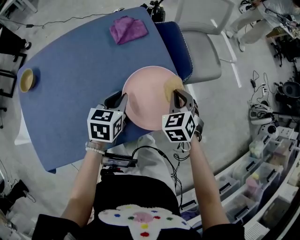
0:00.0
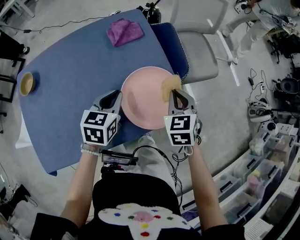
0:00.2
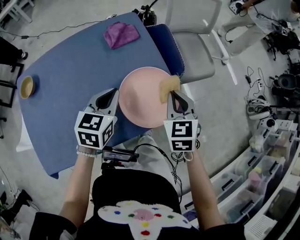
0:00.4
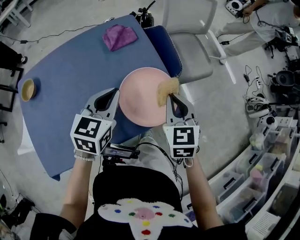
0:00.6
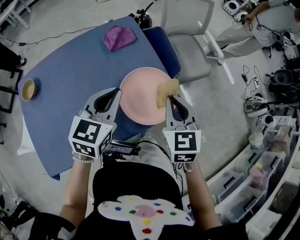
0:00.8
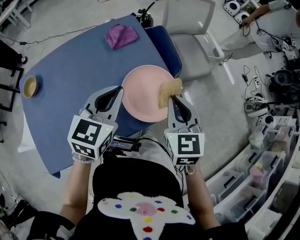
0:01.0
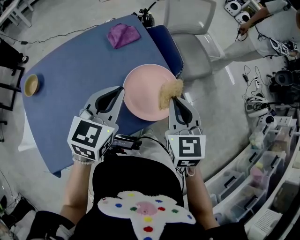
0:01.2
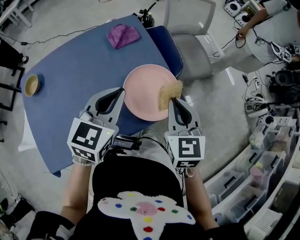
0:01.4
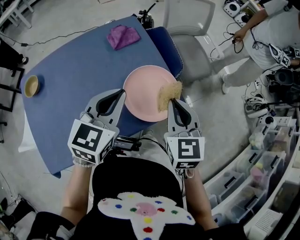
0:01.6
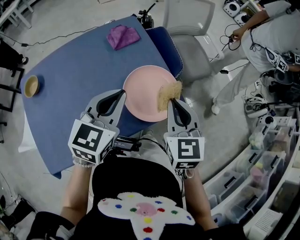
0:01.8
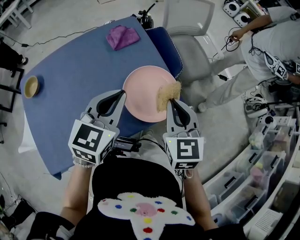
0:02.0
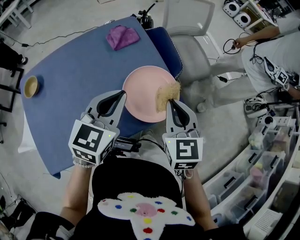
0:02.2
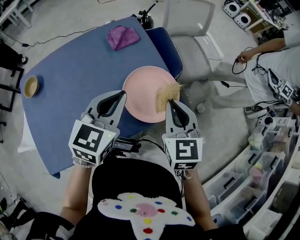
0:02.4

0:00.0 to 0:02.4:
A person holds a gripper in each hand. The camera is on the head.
0:00.0 to 0:01.2: The right gripper is displaced upward and backward by approximately 15 cm, and changes its angle by approximately 30 degrees, while the left gripper heads upward, covering about 15 cm, and rotates roughly 30 degrees.
0:01.2 to 0:02.4: Both grippers stay put.

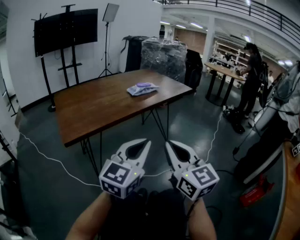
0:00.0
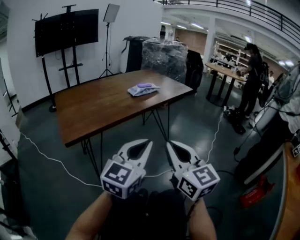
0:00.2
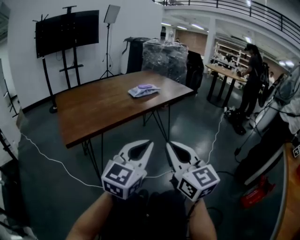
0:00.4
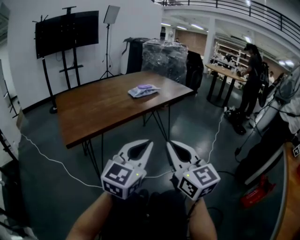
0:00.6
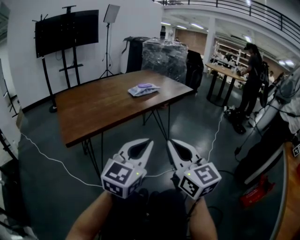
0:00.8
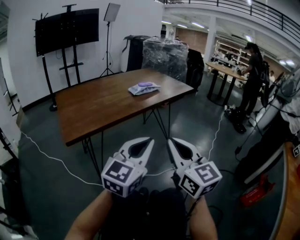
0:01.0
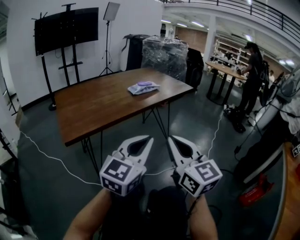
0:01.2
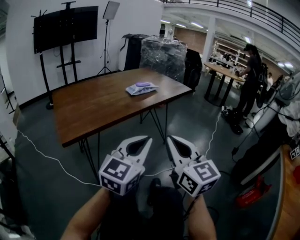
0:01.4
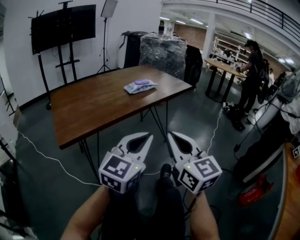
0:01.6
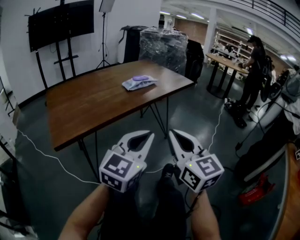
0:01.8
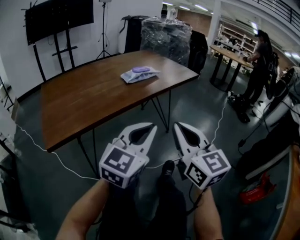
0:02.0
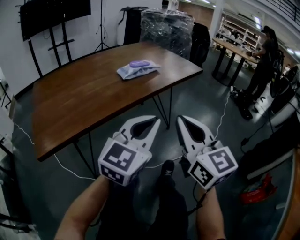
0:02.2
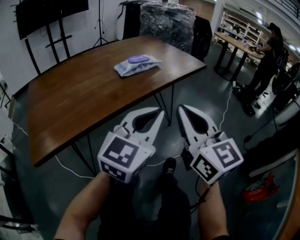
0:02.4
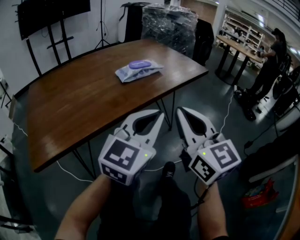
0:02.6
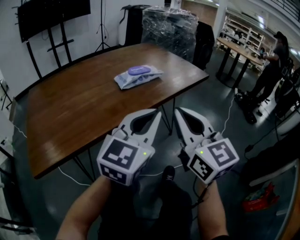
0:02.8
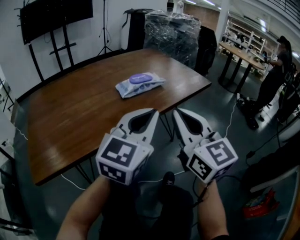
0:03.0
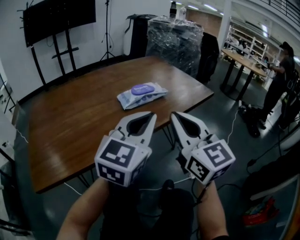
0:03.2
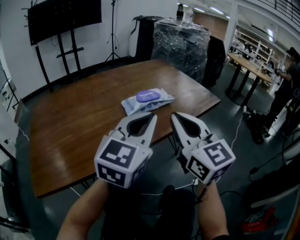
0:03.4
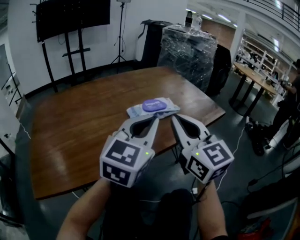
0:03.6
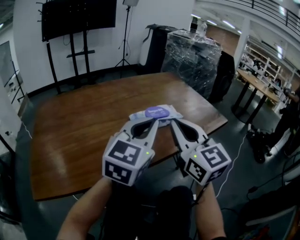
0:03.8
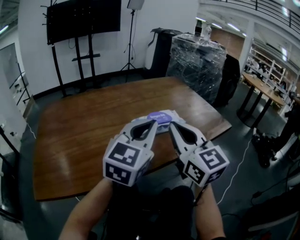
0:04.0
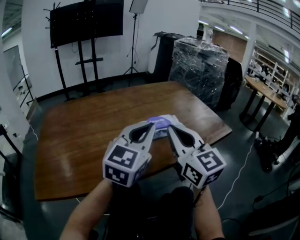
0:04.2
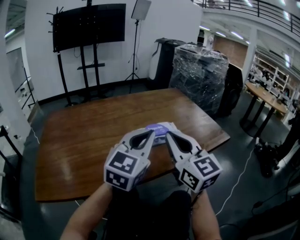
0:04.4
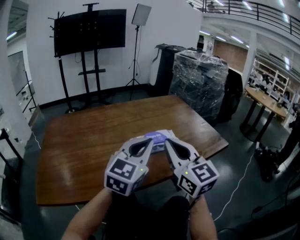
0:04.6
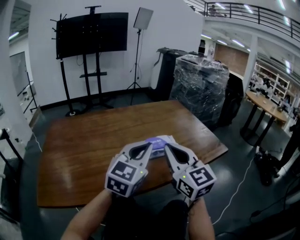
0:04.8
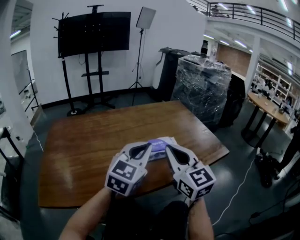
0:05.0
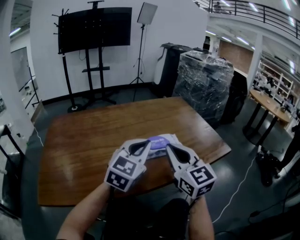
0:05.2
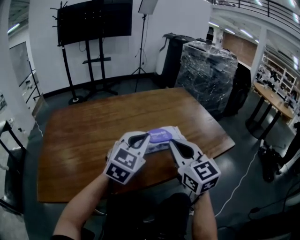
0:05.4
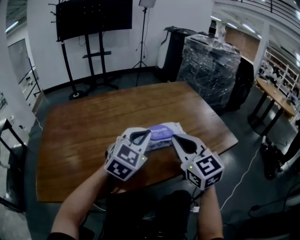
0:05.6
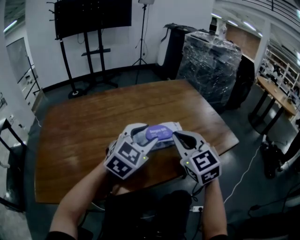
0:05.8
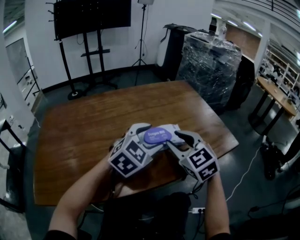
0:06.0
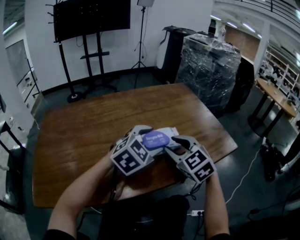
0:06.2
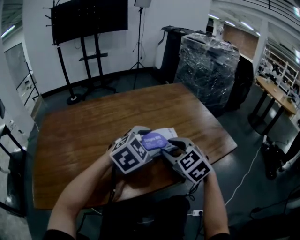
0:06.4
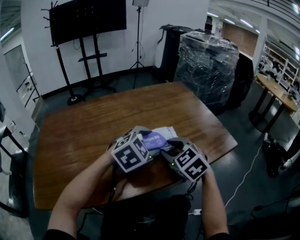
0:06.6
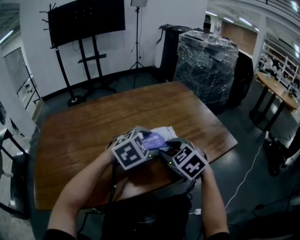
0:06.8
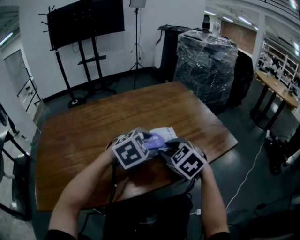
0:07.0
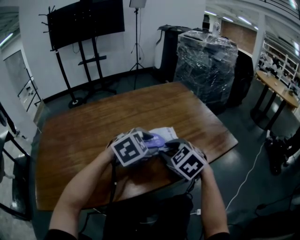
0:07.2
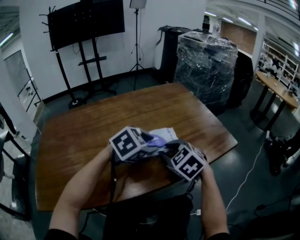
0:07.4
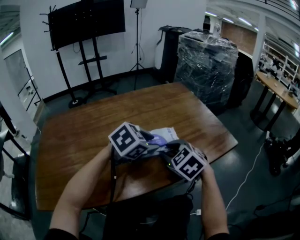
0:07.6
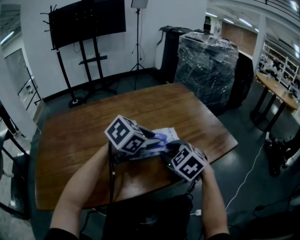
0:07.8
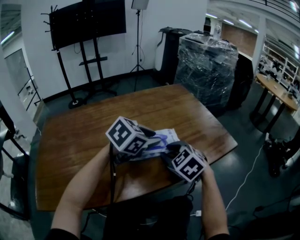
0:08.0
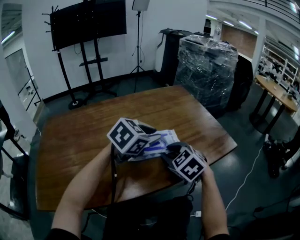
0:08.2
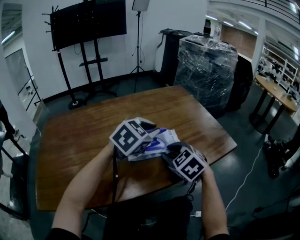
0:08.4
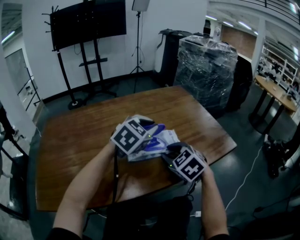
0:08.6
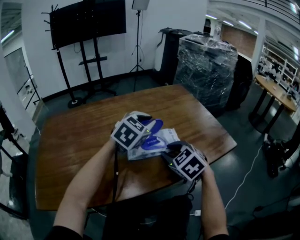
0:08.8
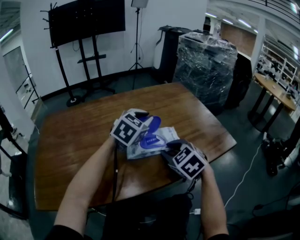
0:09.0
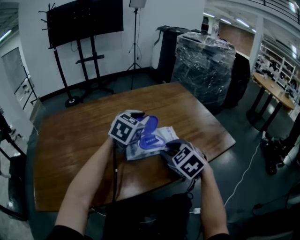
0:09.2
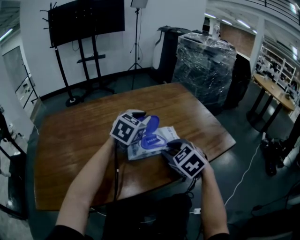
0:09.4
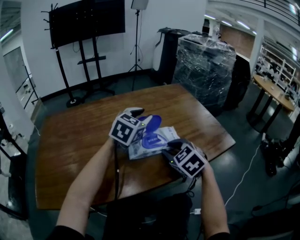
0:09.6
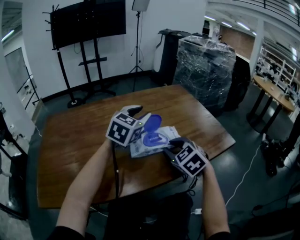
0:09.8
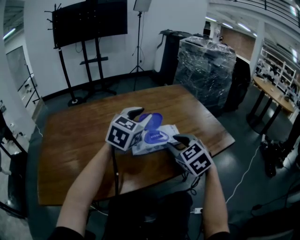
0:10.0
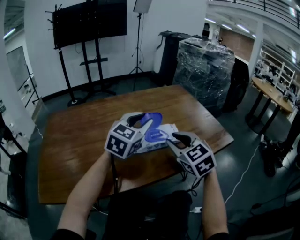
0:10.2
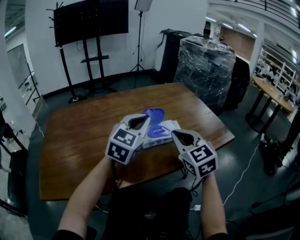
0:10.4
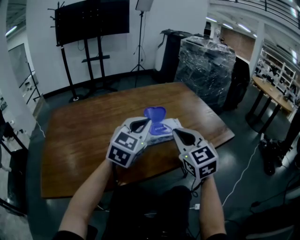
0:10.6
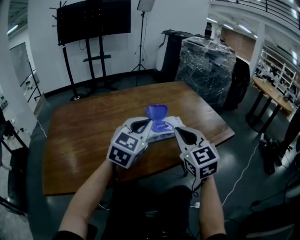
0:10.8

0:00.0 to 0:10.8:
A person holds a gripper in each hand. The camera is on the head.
0:00.0 to 0:01.6: The grippers make only small movements.
0:01.6 to 0:03.0: The two grippers go some 25 cm forward.
0:03.0 to 0:04.6: The two grippers go approximately 15 cm forward.
0:04.6 to 0:06.2: Both grippers move forward and downward, about 15 cm. The right gripper tips its fingers downward by approximately 30 degrees, and opens its fingers. Meanwhile the left gripper changes its angle by about 30 degrees, and opens its fingers.
0:06.2 to 0:07.8: The left gripper swivels some 30 degrees, and closes up.
0:07.8 to 0:09.2: The left gripper shifts approximately 10 cm forward and to the left, and turns by about 30 degrees.
0:09.2 to 0:10.8: The left gripper shifts some 15 cm backward. Meanwhile the right gripper heads upward and backward, covering about 15 cm, tilts its fingers some 30 degrees upward, and closes up.

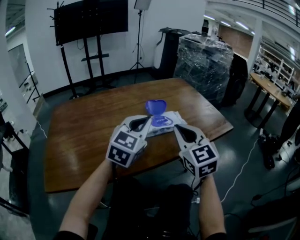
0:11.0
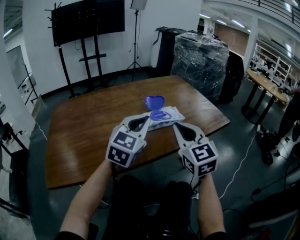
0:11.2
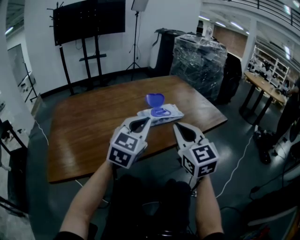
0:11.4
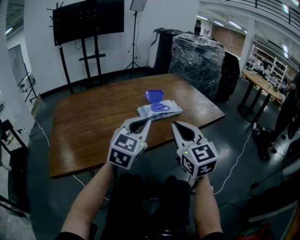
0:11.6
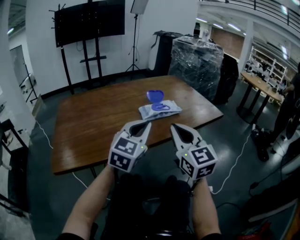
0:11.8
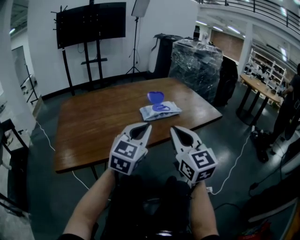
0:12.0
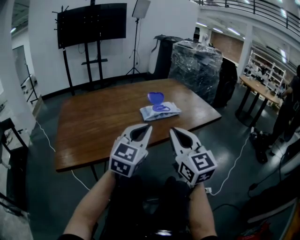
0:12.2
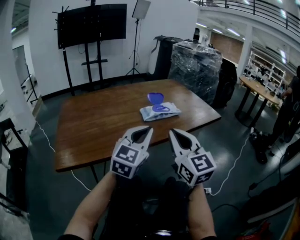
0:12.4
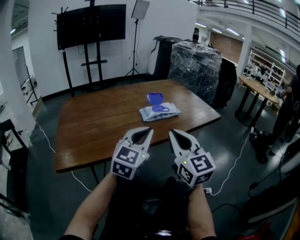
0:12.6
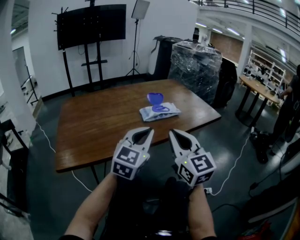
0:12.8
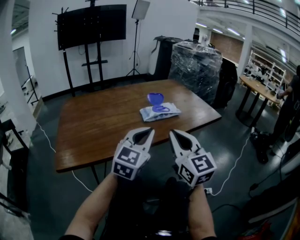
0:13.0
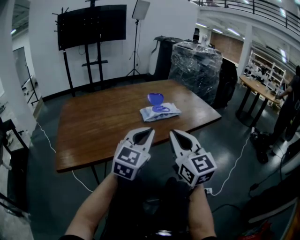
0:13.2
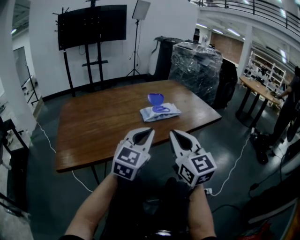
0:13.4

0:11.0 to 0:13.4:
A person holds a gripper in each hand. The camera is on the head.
0:11.0 to 0:12.2: The grippers both shift backward by approximately 15 cm.
0:12.2 to 0:13.4: The grippers stay close to where they were, moving slightly.

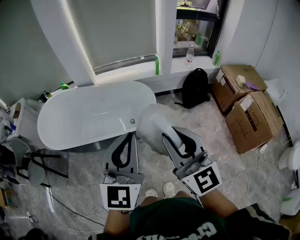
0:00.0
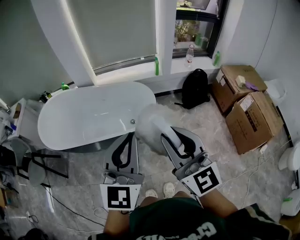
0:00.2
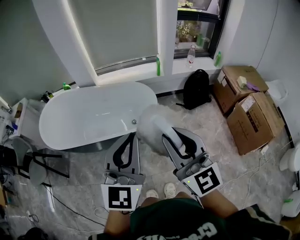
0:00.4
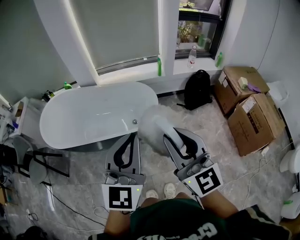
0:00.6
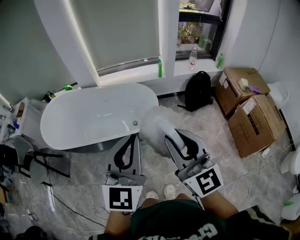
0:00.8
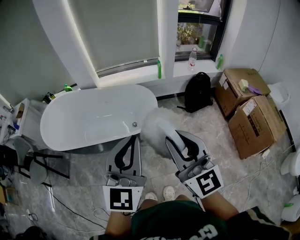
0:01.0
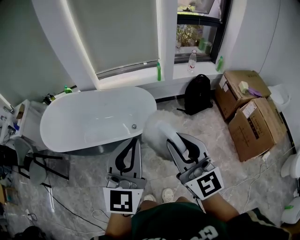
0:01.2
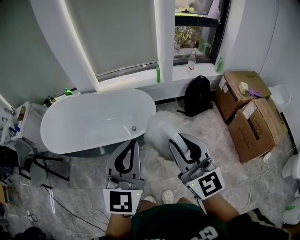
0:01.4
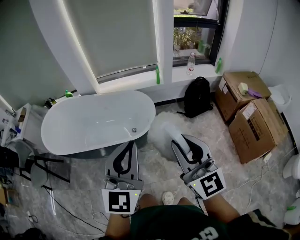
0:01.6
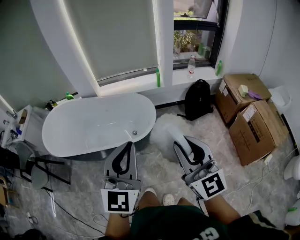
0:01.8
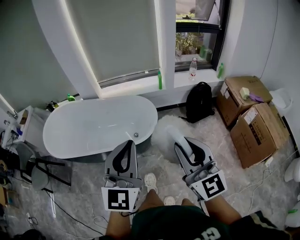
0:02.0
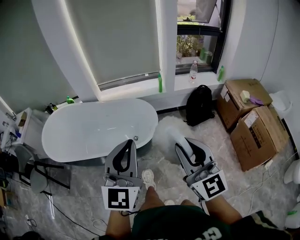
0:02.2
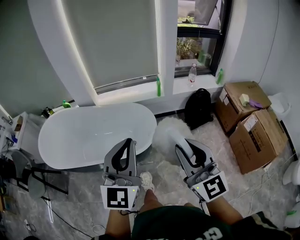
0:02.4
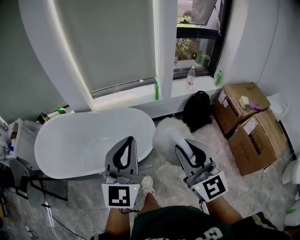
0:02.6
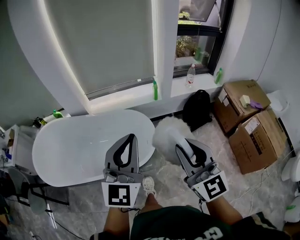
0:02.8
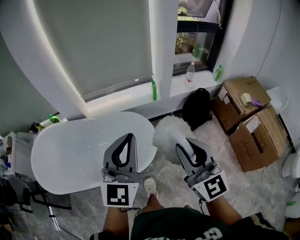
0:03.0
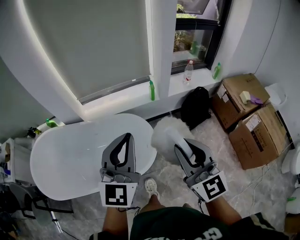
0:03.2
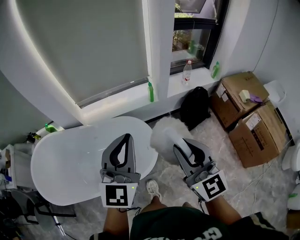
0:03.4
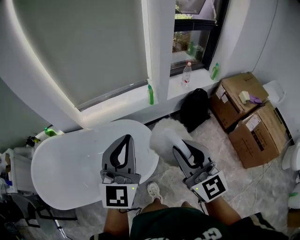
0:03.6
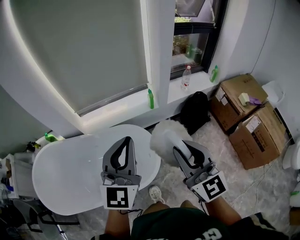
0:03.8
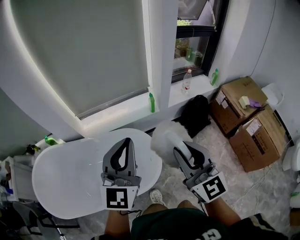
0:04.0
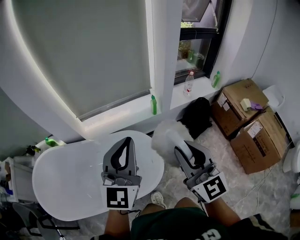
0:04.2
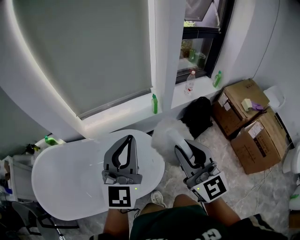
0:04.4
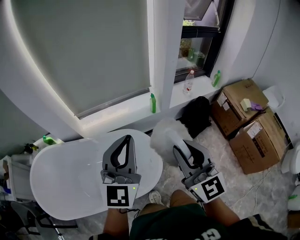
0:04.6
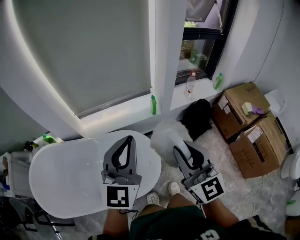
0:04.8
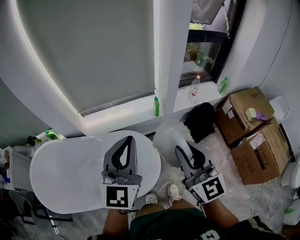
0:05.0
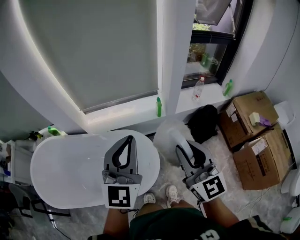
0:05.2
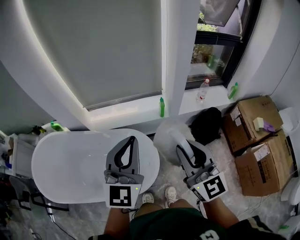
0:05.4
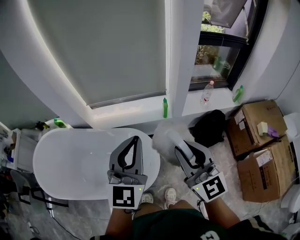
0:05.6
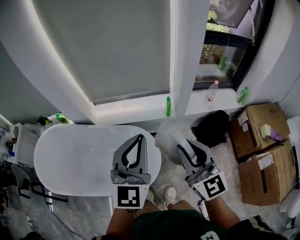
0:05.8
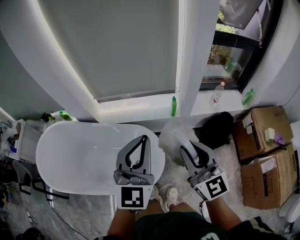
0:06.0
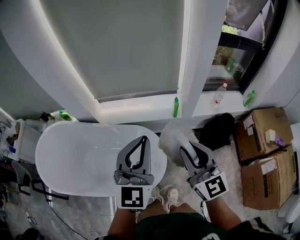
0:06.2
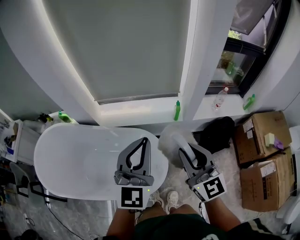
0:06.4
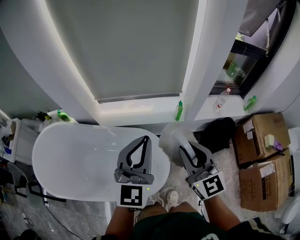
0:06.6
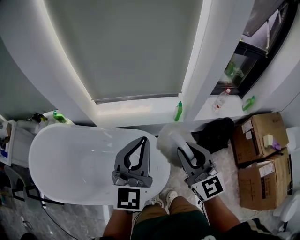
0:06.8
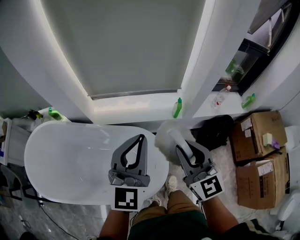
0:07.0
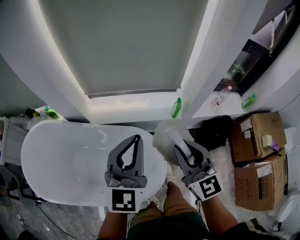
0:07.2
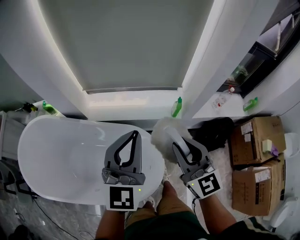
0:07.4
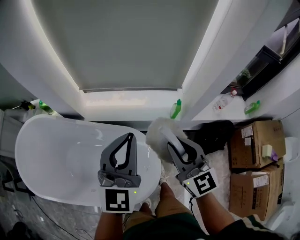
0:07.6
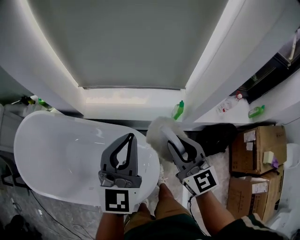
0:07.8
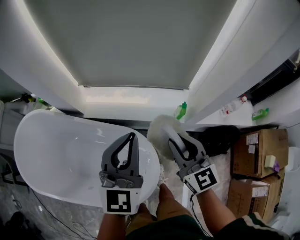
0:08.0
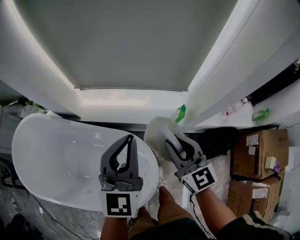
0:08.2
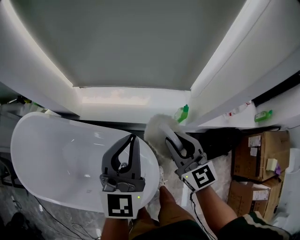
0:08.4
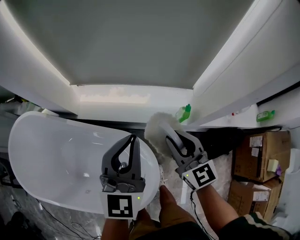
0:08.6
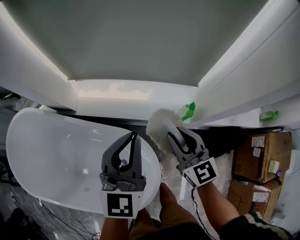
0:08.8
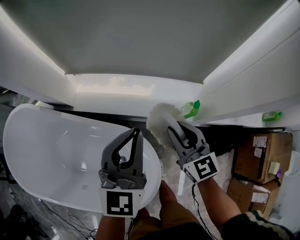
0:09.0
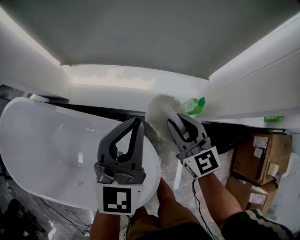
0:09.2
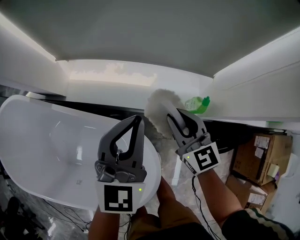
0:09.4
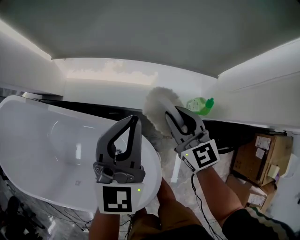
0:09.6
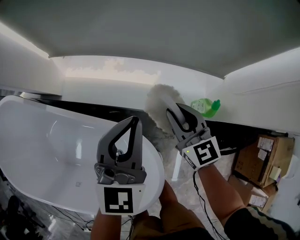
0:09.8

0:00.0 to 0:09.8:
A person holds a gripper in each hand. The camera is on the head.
0:00.0 to 0:01.4: The two grippers go some 5 cm to the right.
0:01.4 to 0:02.8: Both grippers travel together forward, roughly 20 cm.
0:02.8 to 0:04.2: The grippers both shift forward by roughly 20 cm.
0:04.2 to 0:05.6: The left gripper moves to the right, roughly 10 cm. The right gripper moves to the right and forward, approximately 10 cm.
0:05.6 to 0:07.0: The two grippers go some 15 cm forward, to the left and downward.
0:07.0 to 0:08.4: The two grippers go about 20 cm forward and downward.
0:08.4 to 0:09.8: Both grippers travel together downward and forward, approximately 25 cm.
